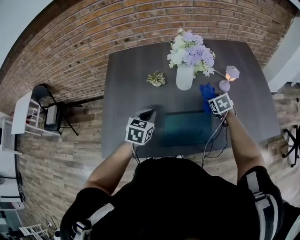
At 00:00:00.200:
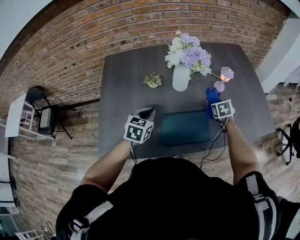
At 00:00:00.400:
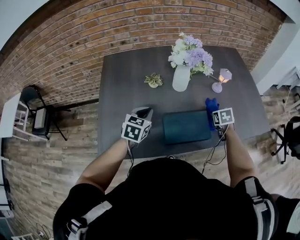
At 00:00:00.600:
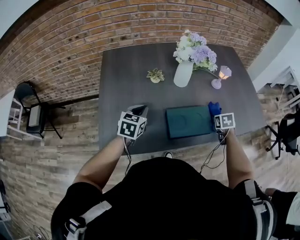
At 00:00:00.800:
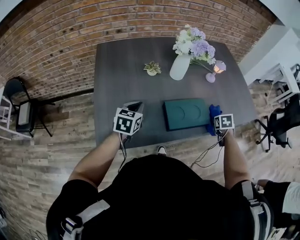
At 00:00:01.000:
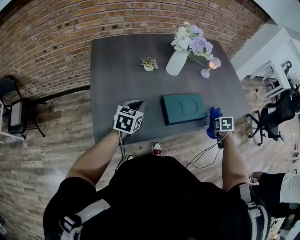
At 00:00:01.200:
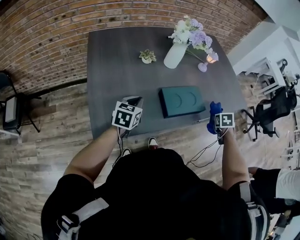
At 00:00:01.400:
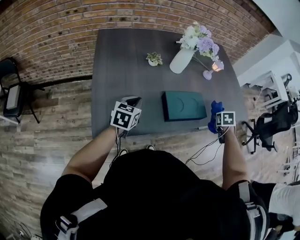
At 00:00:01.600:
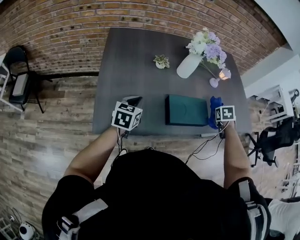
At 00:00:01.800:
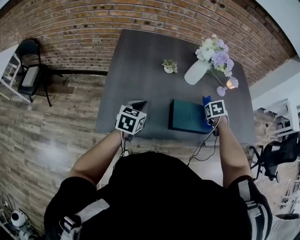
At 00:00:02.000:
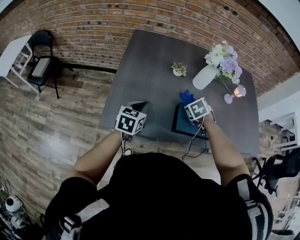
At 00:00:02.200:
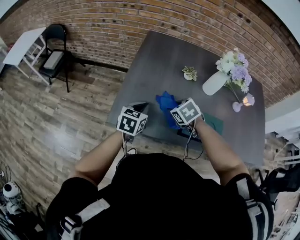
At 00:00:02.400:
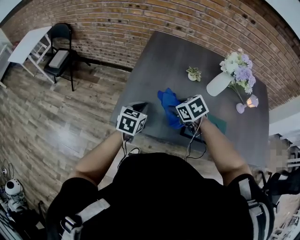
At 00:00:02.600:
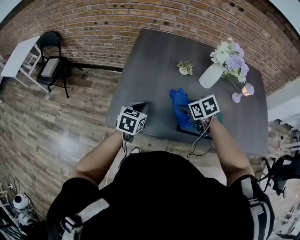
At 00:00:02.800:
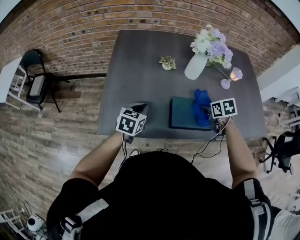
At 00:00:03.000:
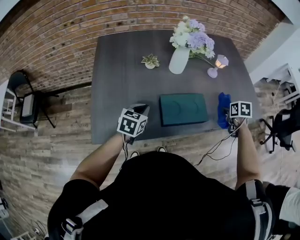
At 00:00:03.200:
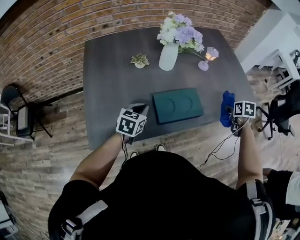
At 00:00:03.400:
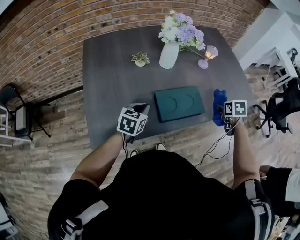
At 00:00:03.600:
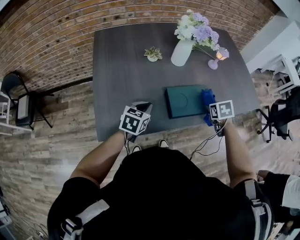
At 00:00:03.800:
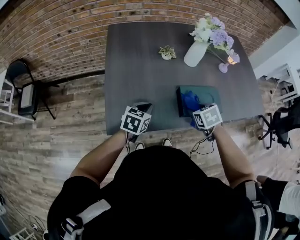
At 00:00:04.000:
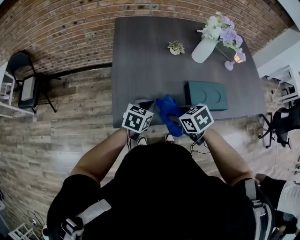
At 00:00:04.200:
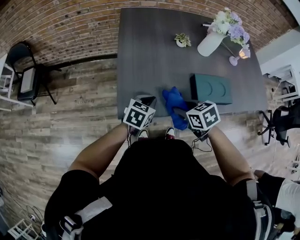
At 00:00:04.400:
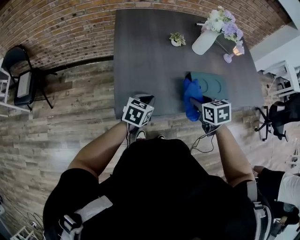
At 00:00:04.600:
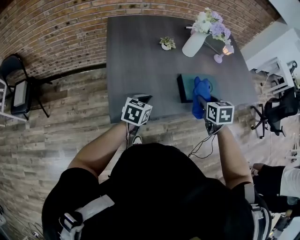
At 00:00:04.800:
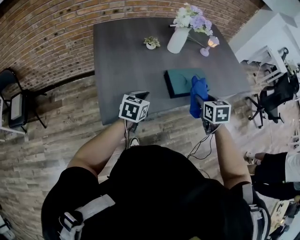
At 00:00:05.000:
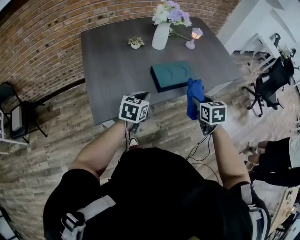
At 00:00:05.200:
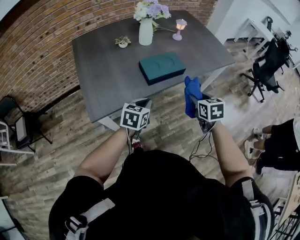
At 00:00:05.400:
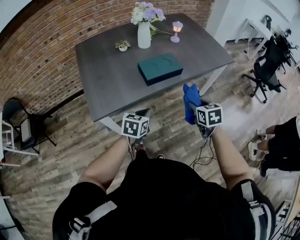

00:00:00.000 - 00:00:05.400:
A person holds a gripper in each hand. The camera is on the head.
00:00:00.000 - 00:00:01.400: The right gripper moves some 25 cm, and swivels approximately 30 degrees. The left gripper shifts by approximately 15 cm.
00:00:01.400 - 00:00:02.800: The right gripper rotates approximately 40 degrees.
00:00:02.800 - 00:00:04.000: The left gripper shifts by about 5 cm, while the right gripper moves roughly 30 cm.
00:00:04.000 - 00:00:05.400: The left gripper ends up some 25 cm from where it was. Meanwhile the right gripper moves approximately 35 cm, and turns by about 50 degrees.

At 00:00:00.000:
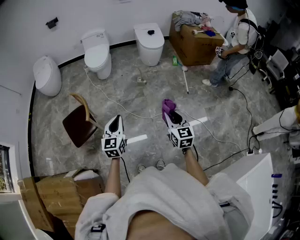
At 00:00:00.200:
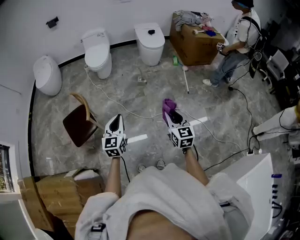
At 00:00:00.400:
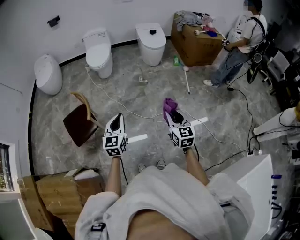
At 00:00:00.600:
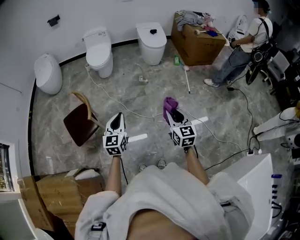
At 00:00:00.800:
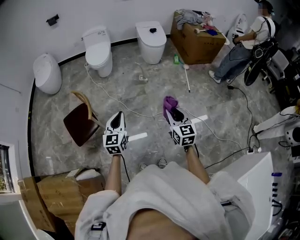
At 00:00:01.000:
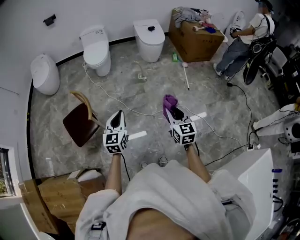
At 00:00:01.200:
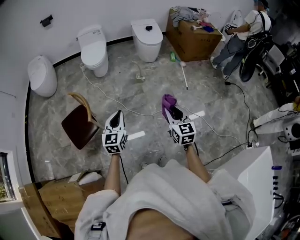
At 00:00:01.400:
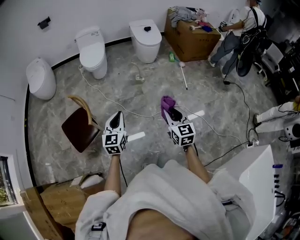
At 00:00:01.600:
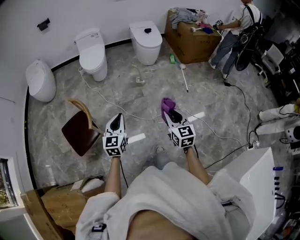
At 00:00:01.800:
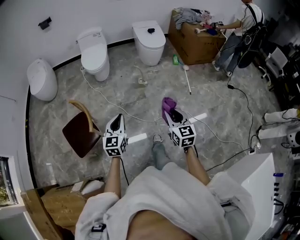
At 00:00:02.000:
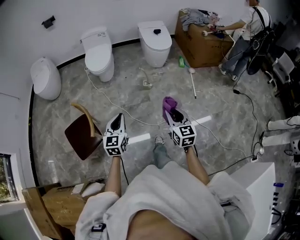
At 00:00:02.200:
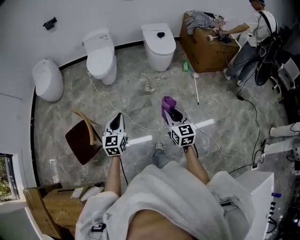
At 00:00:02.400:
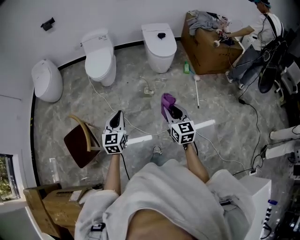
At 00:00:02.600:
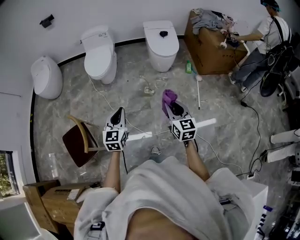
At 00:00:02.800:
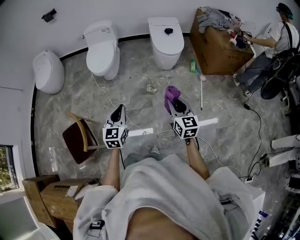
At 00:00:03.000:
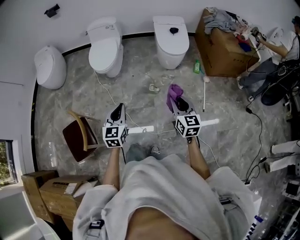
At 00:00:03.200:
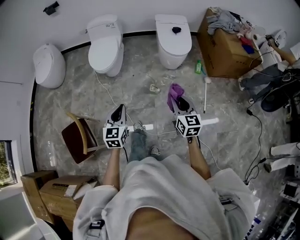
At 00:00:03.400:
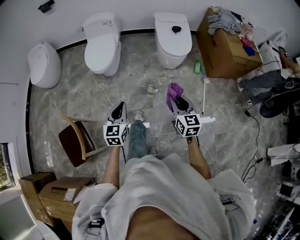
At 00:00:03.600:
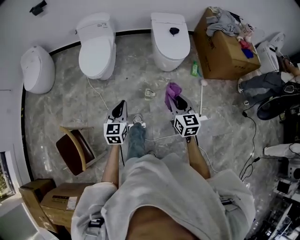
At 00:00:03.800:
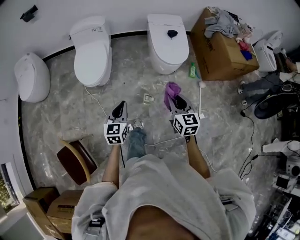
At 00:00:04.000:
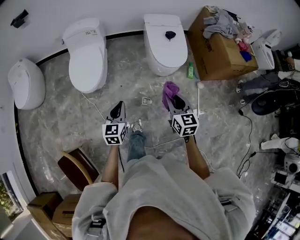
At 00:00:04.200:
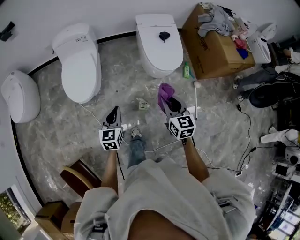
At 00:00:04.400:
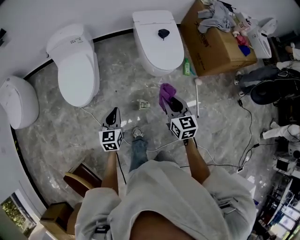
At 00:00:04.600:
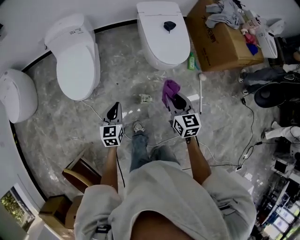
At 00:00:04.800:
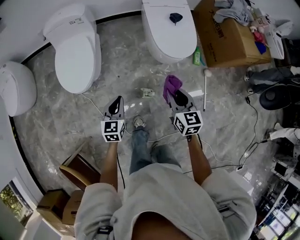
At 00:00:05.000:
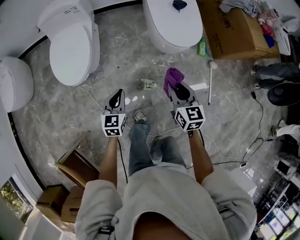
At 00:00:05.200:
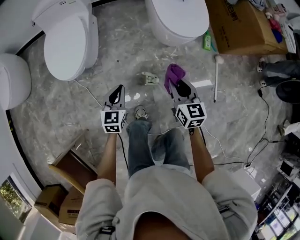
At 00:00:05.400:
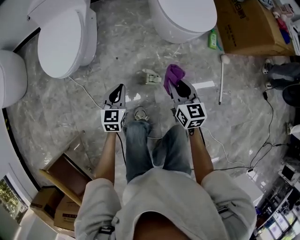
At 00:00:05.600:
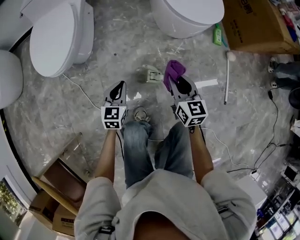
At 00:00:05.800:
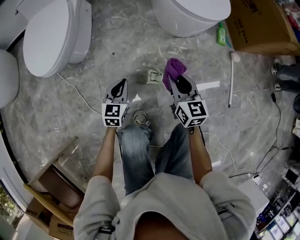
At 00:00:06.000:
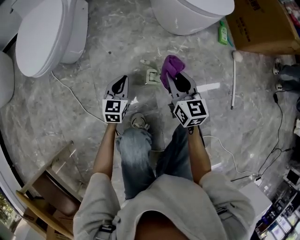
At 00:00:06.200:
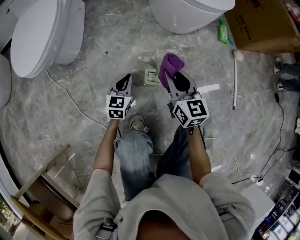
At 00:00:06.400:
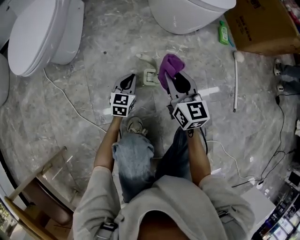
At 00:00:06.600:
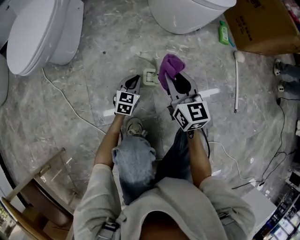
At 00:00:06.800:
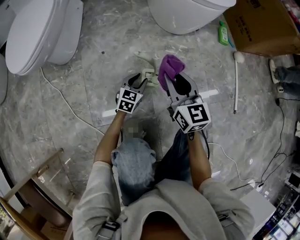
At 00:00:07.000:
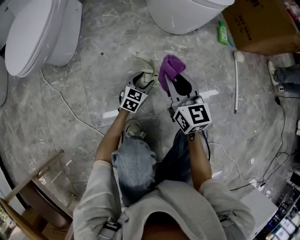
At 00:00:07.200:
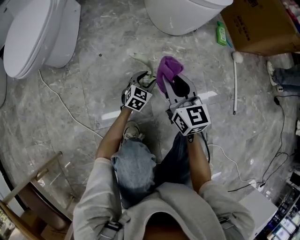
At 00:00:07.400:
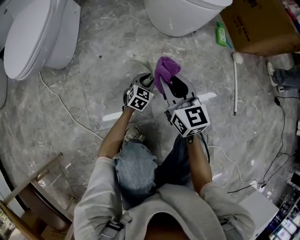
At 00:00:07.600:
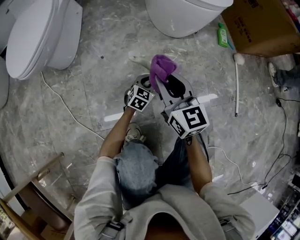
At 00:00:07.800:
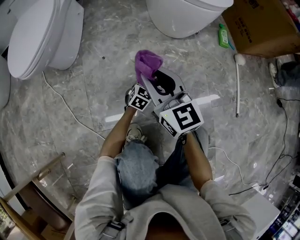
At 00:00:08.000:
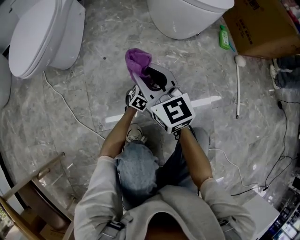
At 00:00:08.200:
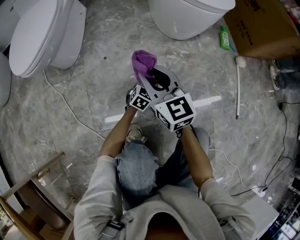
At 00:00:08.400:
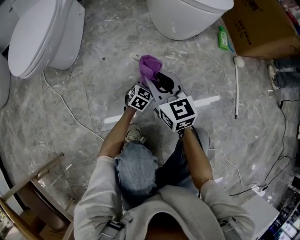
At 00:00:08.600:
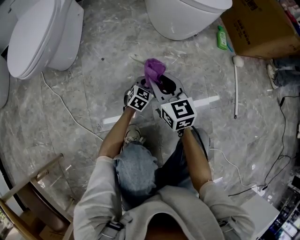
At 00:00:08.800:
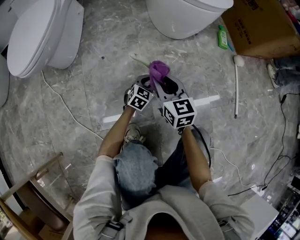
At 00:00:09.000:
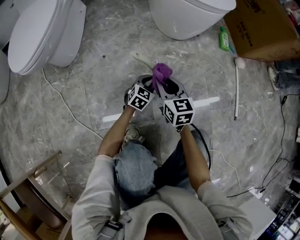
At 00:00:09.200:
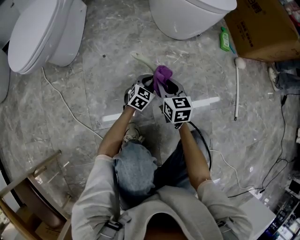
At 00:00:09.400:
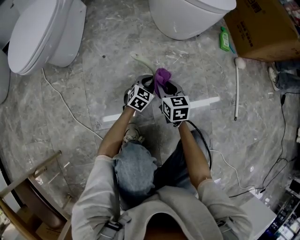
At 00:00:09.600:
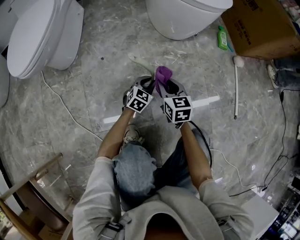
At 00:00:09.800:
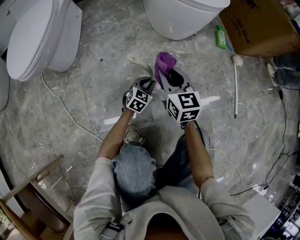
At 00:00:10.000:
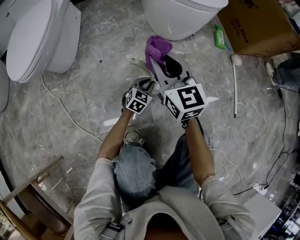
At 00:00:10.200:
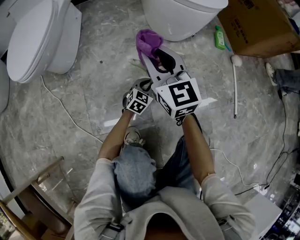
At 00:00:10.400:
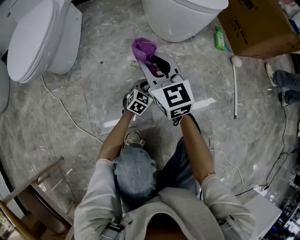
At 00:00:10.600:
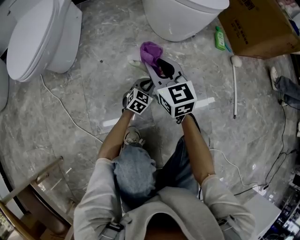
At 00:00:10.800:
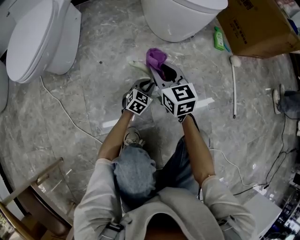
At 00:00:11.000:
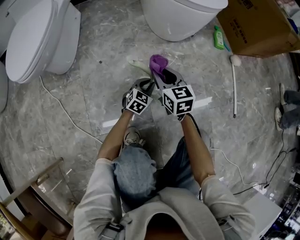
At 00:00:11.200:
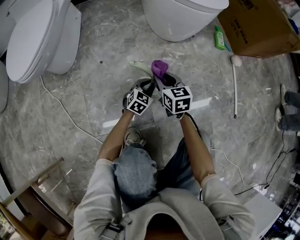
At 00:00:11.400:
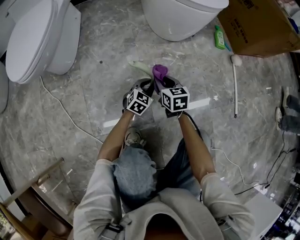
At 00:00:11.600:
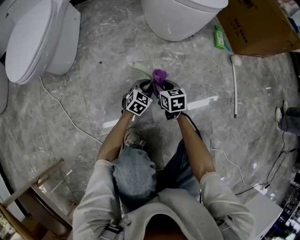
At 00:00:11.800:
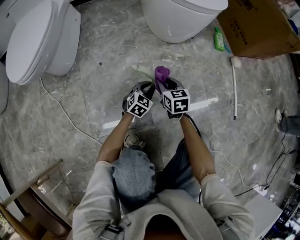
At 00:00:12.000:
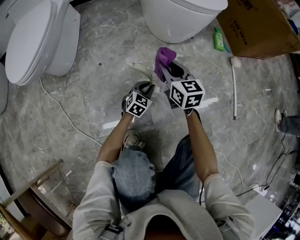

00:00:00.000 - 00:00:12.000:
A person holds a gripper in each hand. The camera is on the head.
00:00:00.000 - 00:00:01.600: The left gripper shifts some 5 cm forward, while the right gripper is displaced forward and to the left by about 5 cm.
00:00:01.600 - 00:00:03.000: Both grippers travel together forward, approximately 35 cm.
00:00:03.000 - 00:00:04.400: The grippers both shift forward by some 35 cm.
00:00:04.400 - 00:00:06.000: The grippers both shift downward by approximately 50 cm.
00:00:06.000 - 00:00:07.600: The left gripper heads to the right and downward, covering about 25 cm, changes its angle by some 20 degrees, and opens and closes again.
00:00:07.600 - 00:00:09.000: The right gripper shifts approximately 10 cm downward.
00:00:09.000 - 00:00:10.400: The right gripper heads upward and to the left, covering about 15 cm, and swivels approximately 20 degrees.
00:00:10.400 - 00:00:12.000: The right gripper moves downward and to the right, some 10 cm.

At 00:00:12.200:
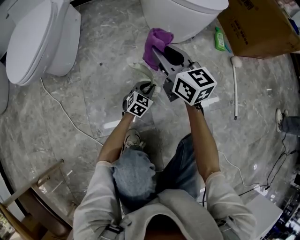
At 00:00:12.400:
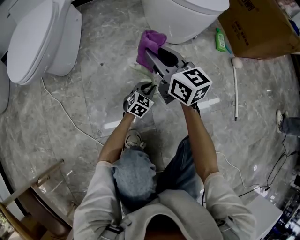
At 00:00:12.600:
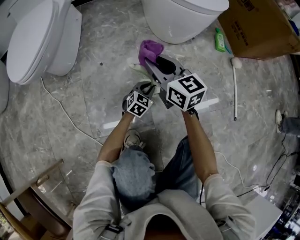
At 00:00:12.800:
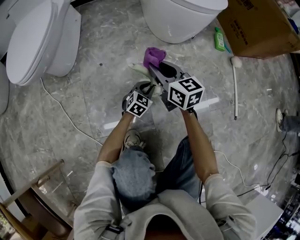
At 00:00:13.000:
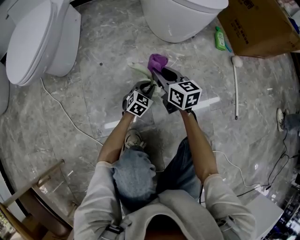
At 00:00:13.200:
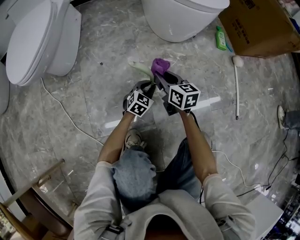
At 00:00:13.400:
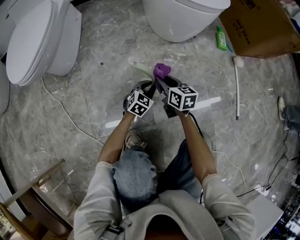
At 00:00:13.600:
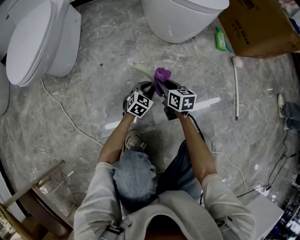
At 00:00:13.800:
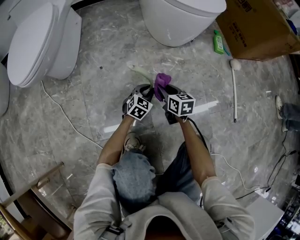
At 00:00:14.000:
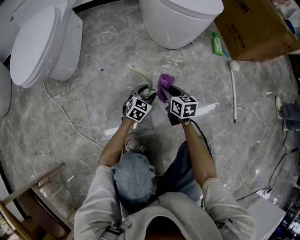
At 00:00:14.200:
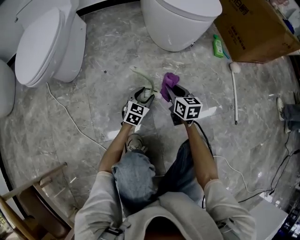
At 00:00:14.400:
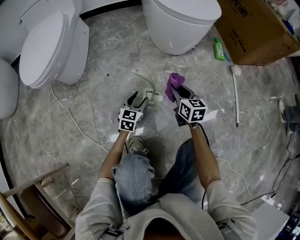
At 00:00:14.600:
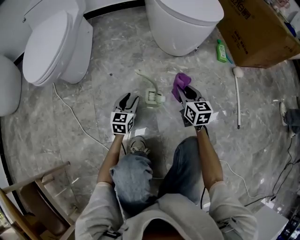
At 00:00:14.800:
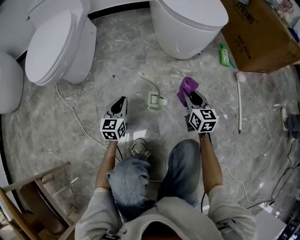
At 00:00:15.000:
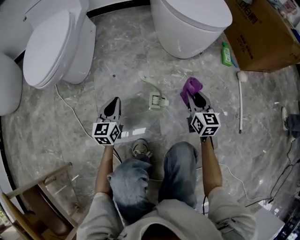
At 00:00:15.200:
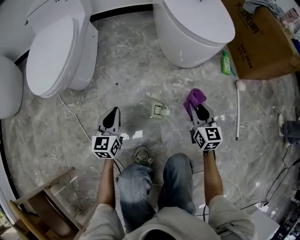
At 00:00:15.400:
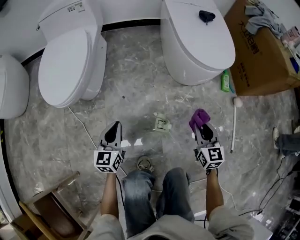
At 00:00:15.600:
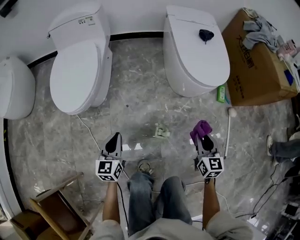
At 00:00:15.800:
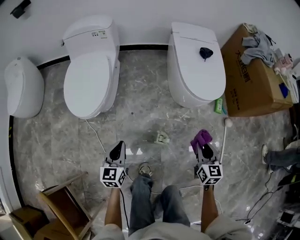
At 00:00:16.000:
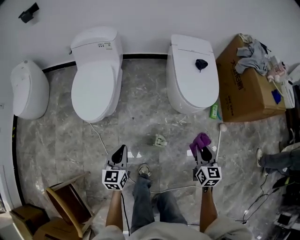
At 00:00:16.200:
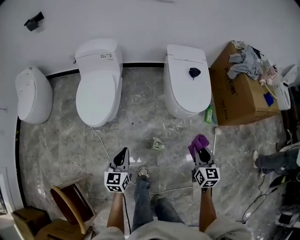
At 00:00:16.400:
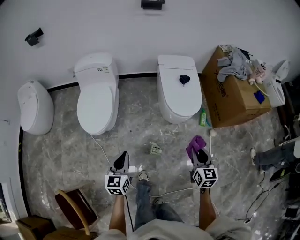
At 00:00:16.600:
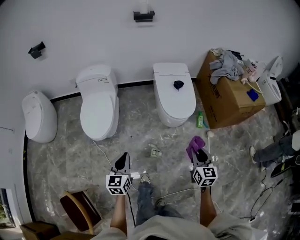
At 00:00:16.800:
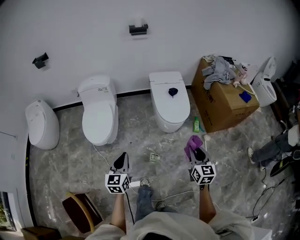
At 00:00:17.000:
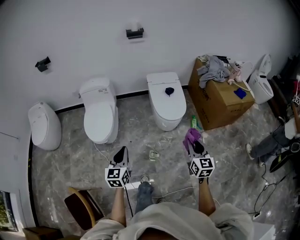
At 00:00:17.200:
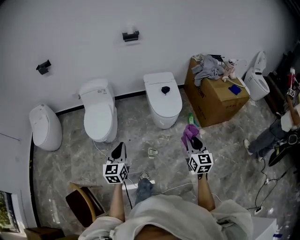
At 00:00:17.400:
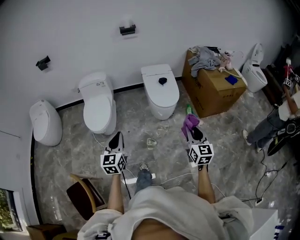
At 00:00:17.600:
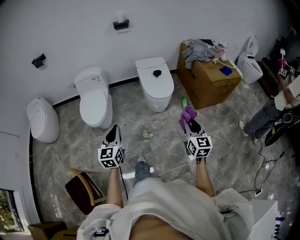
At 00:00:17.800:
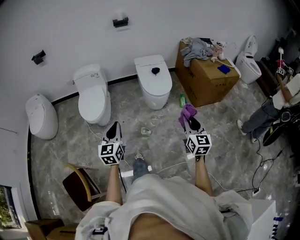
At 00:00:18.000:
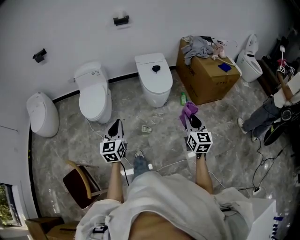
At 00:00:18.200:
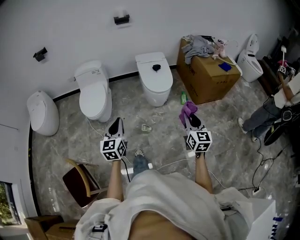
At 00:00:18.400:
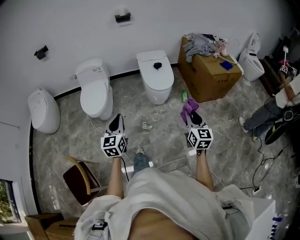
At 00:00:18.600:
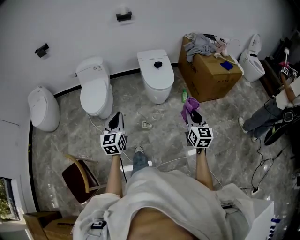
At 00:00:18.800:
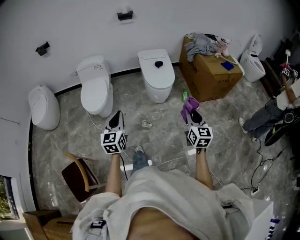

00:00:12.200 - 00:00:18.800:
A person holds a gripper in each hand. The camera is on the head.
00:00:12.200 - 00:00:13.800: The right gripper travels downward by approximately 25 cm, and swivels approximately 30 degrees.
00:00:13.800 - 00:00:15.400: The right gripper is displaced upward by approximately 25 cm, and turns by about 30 degrees. The left gripper heads upward and to the left, covering roughly 35 cm, turns by about 40 degrees, and opens, then closes once more.
00:00:15.400 - 00:00:17.200: Both grippers travel together upward, approximately 60 cm.
00:00:17.200 - 00:00:18.800: The right gripper is displaced backward and to the right by approximately 10 cm; the left gripper goes roughly 5 cm backward.
